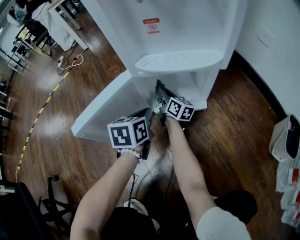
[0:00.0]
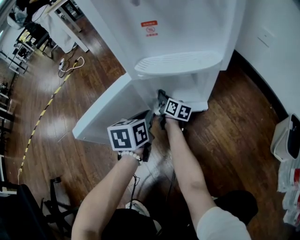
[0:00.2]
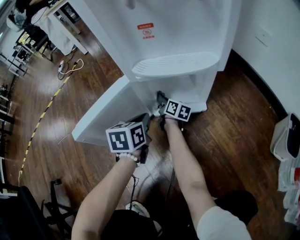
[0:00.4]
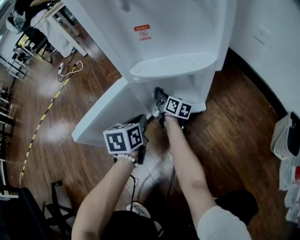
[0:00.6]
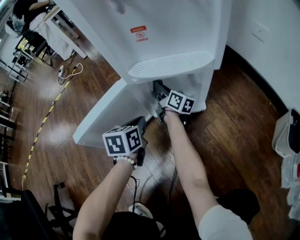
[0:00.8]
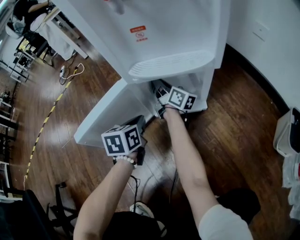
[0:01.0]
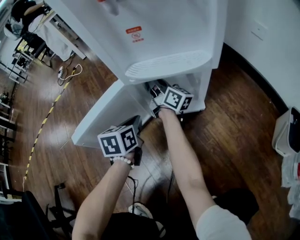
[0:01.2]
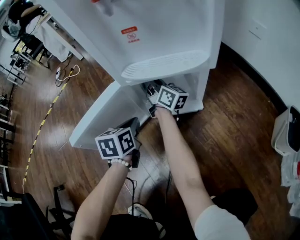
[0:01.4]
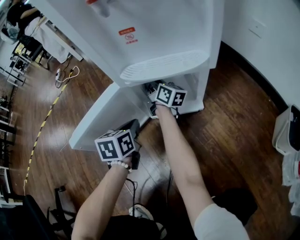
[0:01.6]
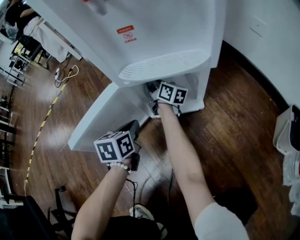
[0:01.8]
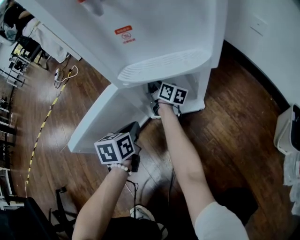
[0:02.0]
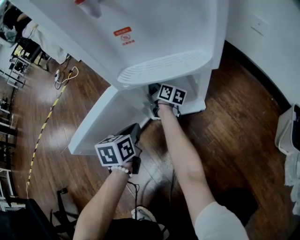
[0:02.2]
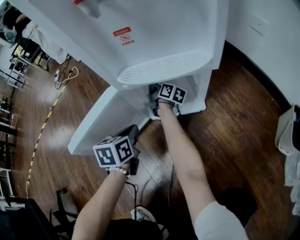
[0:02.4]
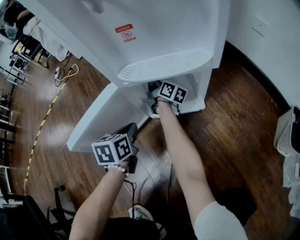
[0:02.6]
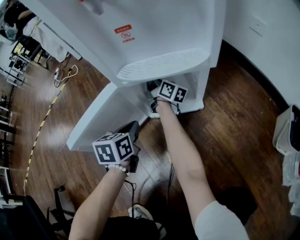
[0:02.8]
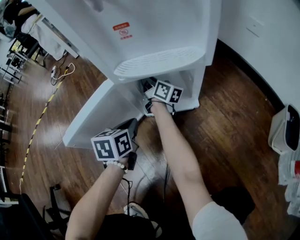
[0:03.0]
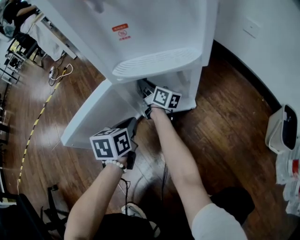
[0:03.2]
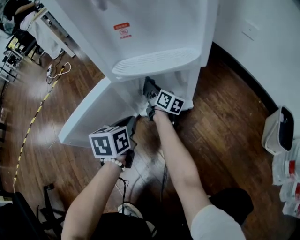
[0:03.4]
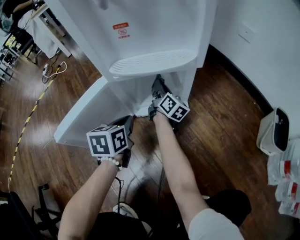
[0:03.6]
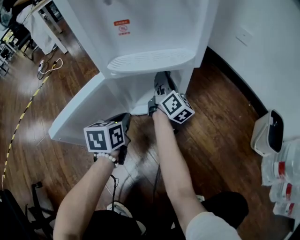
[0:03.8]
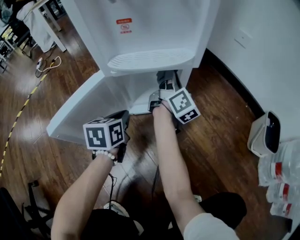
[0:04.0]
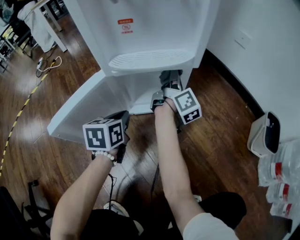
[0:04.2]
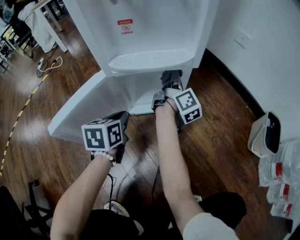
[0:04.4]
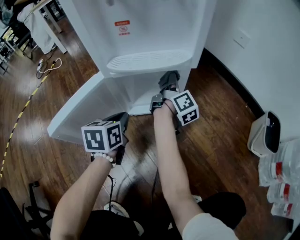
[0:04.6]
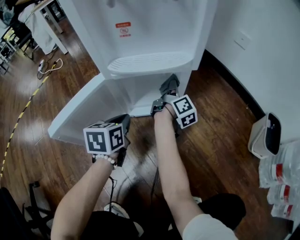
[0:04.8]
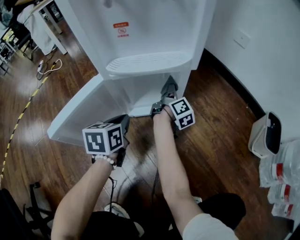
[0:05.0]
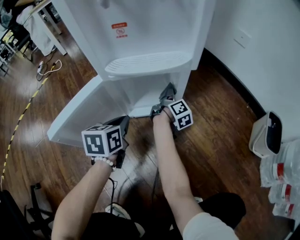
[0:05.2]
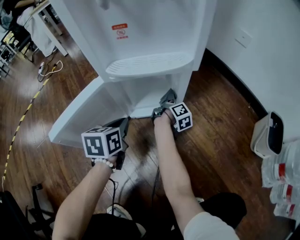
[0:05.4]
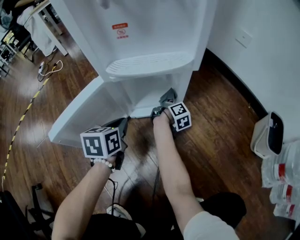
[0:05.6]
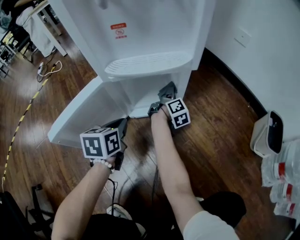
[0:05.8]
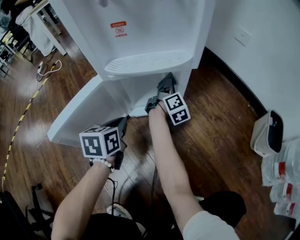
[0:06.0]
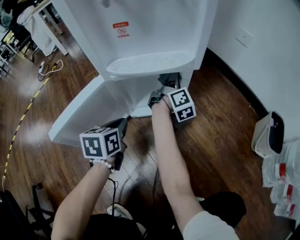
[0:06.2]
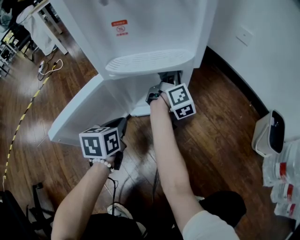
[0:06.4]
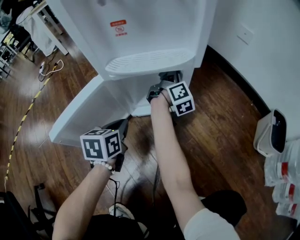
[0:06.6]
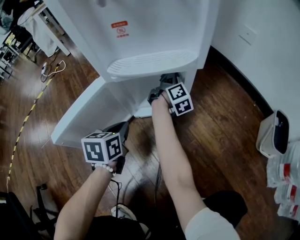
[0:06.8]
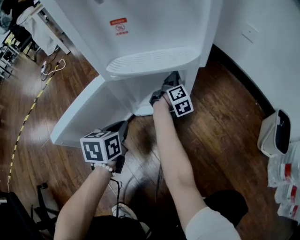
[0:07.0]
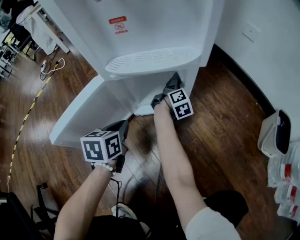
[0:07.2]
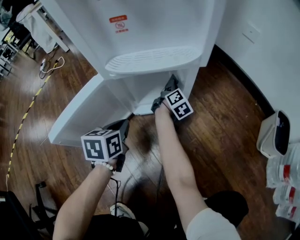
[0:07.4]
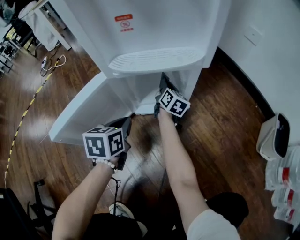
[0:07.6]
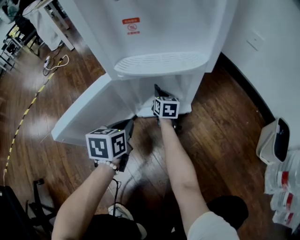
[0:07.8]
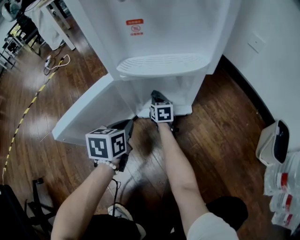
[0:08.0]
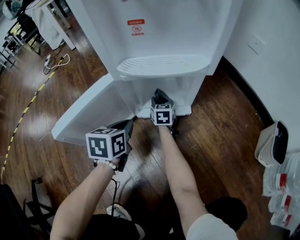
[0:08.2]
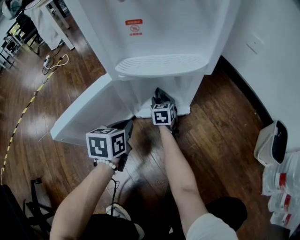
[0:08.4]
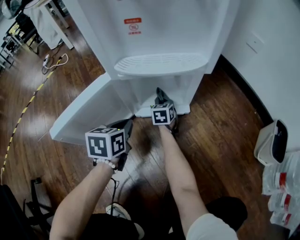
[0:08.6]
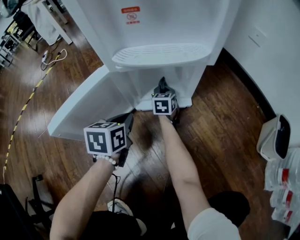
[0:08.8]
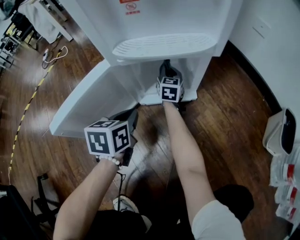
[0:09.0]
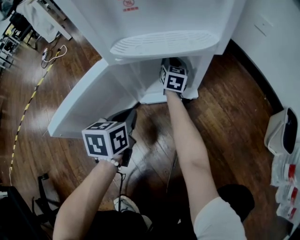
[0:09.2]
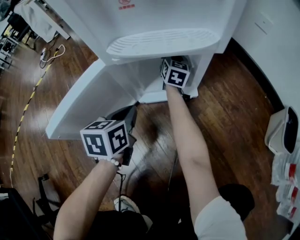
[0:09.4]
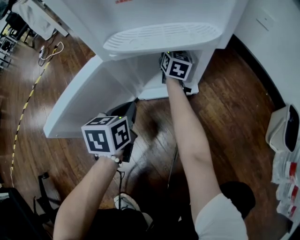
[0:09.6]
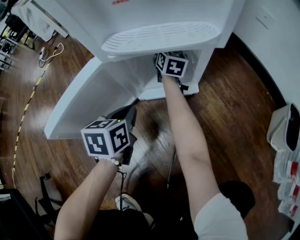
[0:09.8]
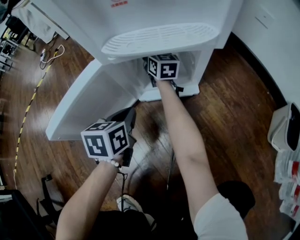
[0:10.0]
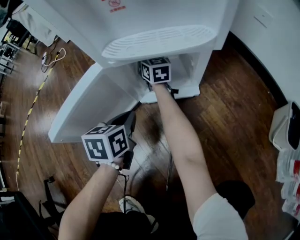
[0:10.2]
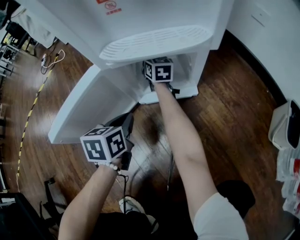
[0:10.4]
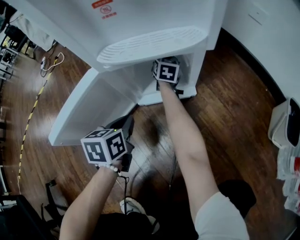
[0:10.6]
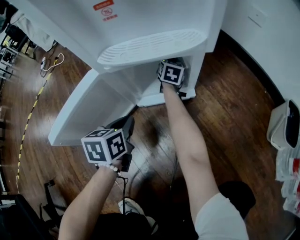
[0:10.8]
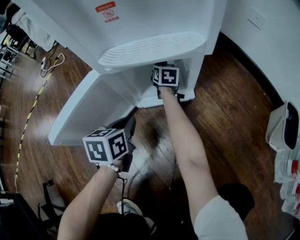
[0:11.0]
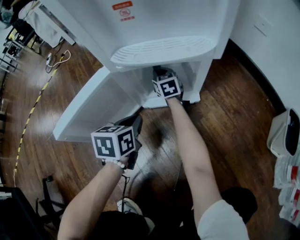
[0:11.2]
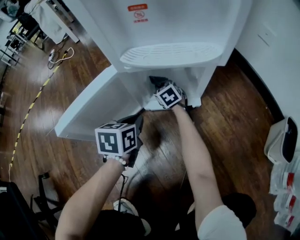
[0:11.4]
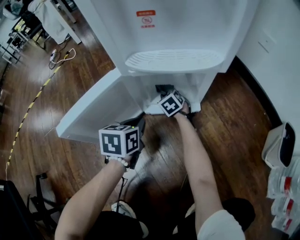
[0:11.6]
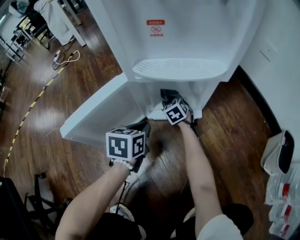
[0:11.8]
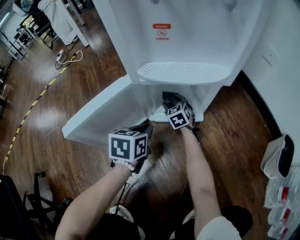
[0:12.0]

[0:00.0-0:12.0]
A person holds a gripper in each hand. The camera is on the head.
0:00.0 to 0:01.6: The right gripper moves up and down over roughly 20 cm, changing direction 2 times.
0:01.6 to 0:03.0: The right gripper reaches roughly 10 cm downward, then returns.
0:03.0 to 0:04.4: The right gripper heads to the right, covering roughly 20 cm, and rotates some 40 degrees.
0:04.4 to 0:06.0: The right gripper heads downward, covering approximately 10 cm.
0:06.0 to 0:07.6: The right gripper goes approximately 5 cm to the left, travels upward and back again, about 10 cm each way, and changes its angle by roughly 40 degrees.
0:07.6 to 0:09.0: The right gripper goes downward and returns, about 10 cm each way, rotates approximately 30 degrees, and opens, then closes once more.
0:09.0 to 0:10.4: The right gripper moves to the left, about 5 cm.
0:10.4 to 0:12.0: The right gripper is displaced downward and backward by some 15 cm, travels to the right and back again, some 10 cm each way, changes its angle by approximately 40 degrees, and opens its fingers.

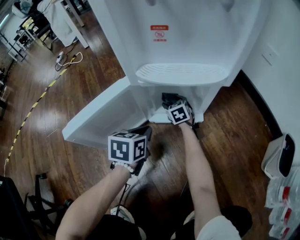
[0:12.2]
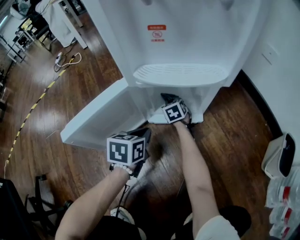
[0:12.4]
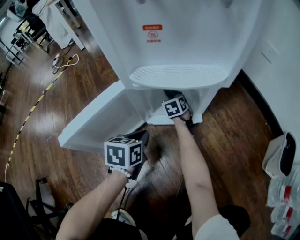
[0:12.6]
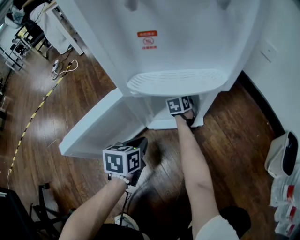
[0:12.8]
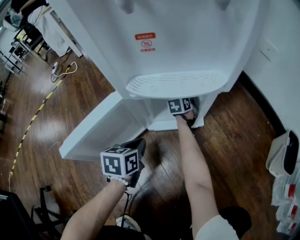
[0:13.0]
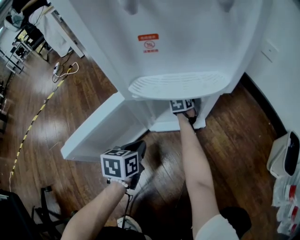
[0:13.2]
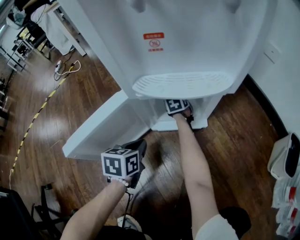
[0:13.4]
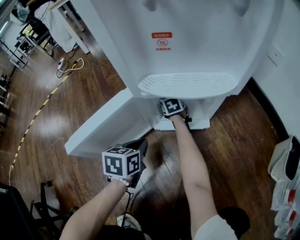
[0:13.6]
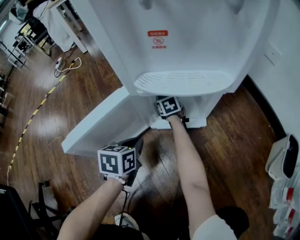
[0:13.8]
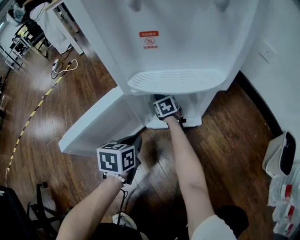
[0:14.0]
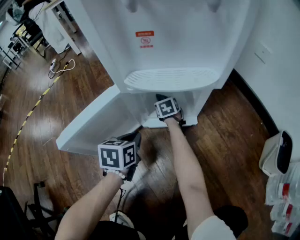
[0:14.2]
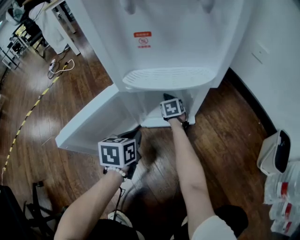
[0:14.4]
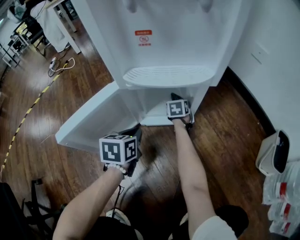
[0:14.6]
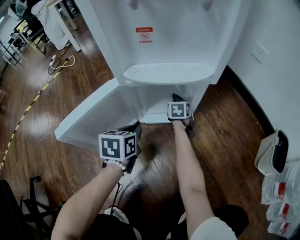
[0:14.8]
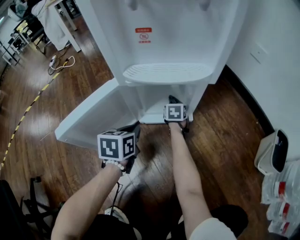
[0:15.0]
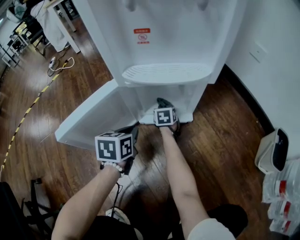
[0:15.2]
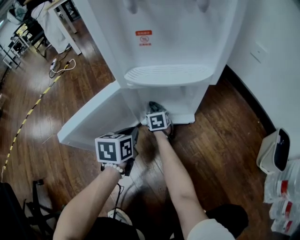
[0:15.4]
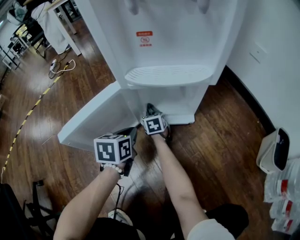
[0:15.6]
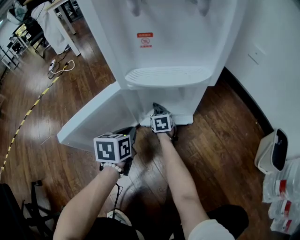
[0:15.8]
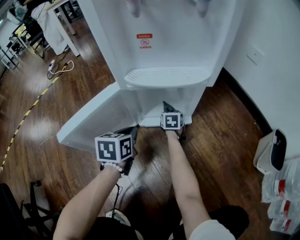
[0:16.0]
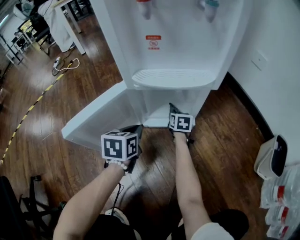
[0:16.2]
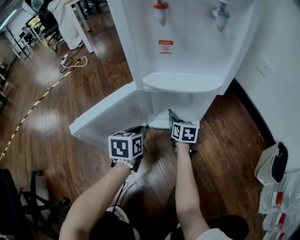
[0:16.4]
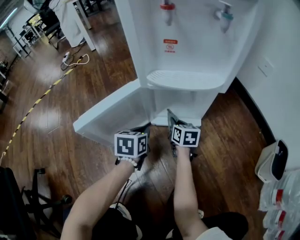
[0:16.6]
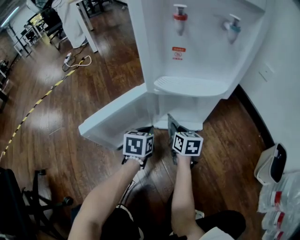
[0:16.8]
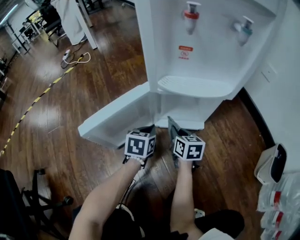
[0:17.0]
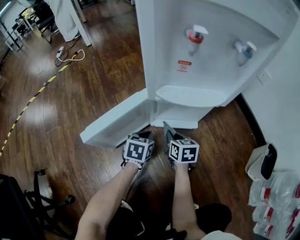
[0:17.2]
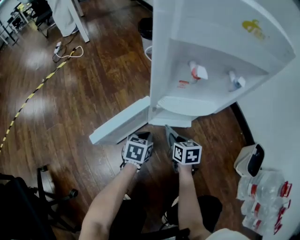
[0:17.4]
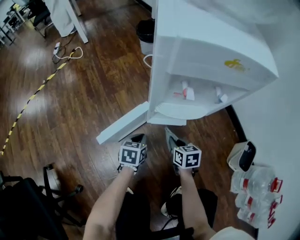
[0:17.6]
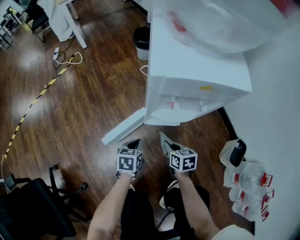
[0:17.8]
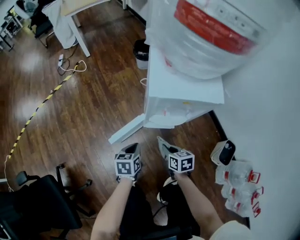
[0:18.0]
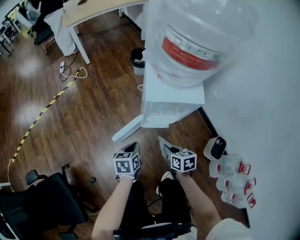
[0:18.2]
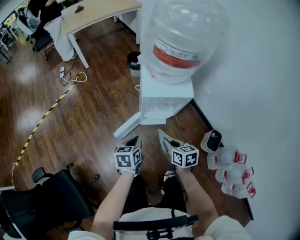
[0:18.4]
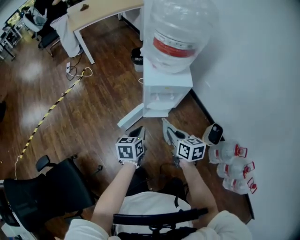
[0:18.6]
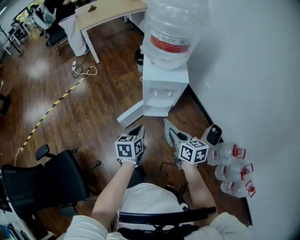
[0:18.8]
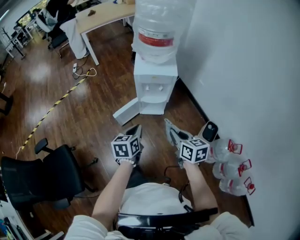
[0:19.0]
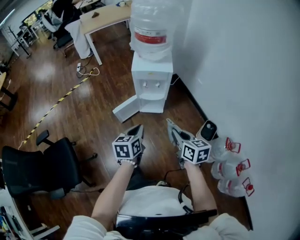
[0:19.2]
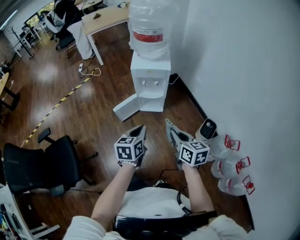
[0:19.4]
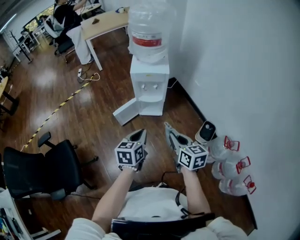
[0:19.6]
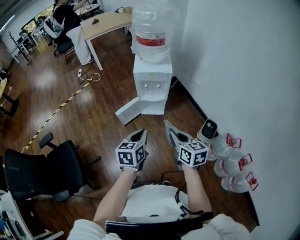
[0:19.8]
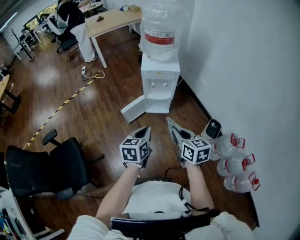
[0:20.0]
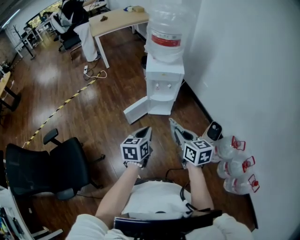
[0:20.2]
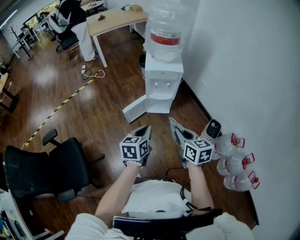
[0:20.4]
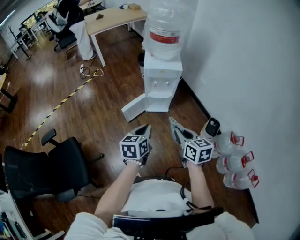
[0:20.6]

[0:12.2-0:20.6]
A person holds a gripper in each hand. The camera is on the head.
0:12.2 to 0:13.6: The right gripper closes its fingers.
0:13.6 to 0:15.0: The right gripper is displaced to the right and backward by roughly 10 cm.
0:15.0 to 0:16.4: The right gripper swings left and right, roughly 15 cm each way, with 2 reversals.
0:16.4 to 0:17.8: The left gripper shifts roughly 20 cm upward. The right gripper is displaced upward and backward by roughly 35 cm.
0:17.8 to 0:19.2: The two grippers go some 60 cm upward and backward. The right gripper changes its angle by about 20 degrees.
0:19.2 to 0:20.6: The grippers both shift to the left and backward by roughly 10 cm.

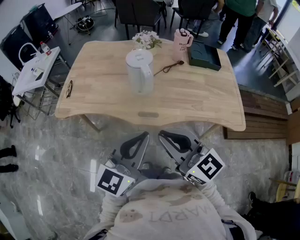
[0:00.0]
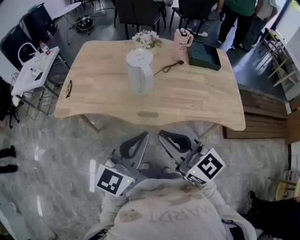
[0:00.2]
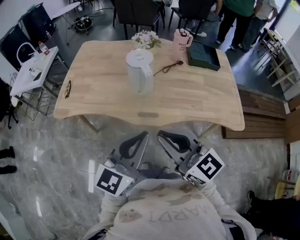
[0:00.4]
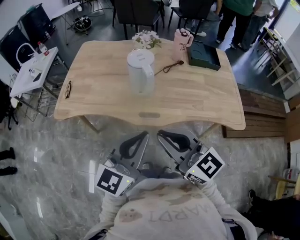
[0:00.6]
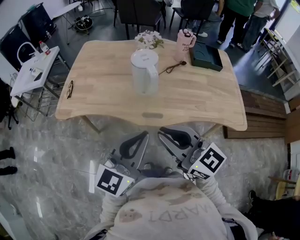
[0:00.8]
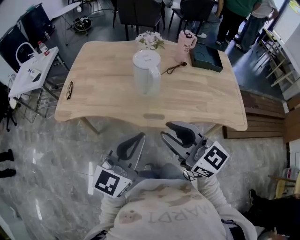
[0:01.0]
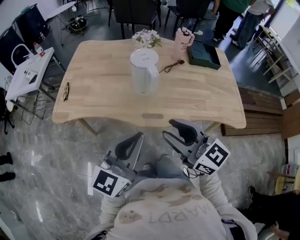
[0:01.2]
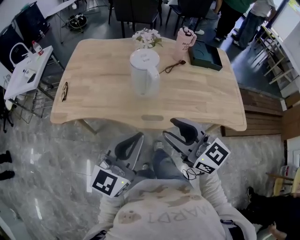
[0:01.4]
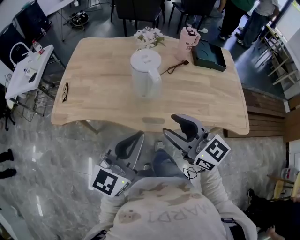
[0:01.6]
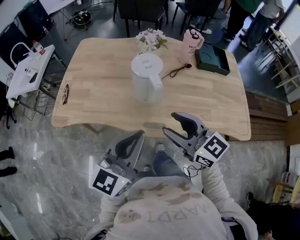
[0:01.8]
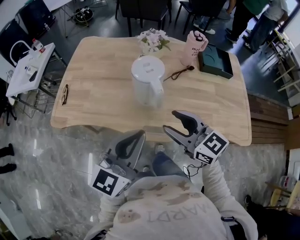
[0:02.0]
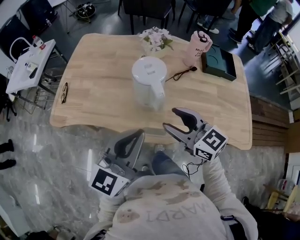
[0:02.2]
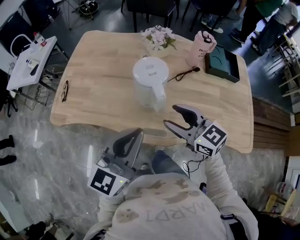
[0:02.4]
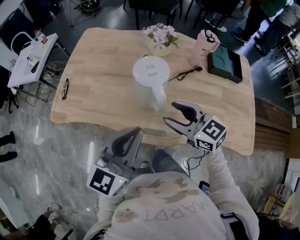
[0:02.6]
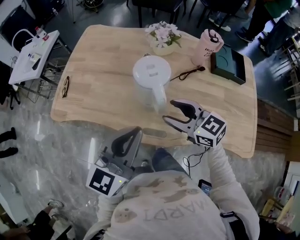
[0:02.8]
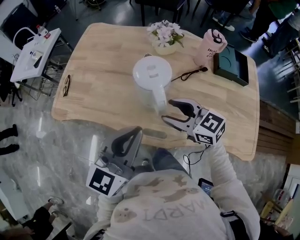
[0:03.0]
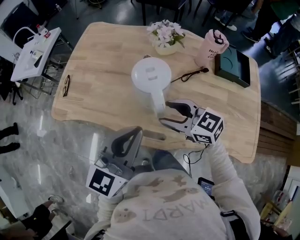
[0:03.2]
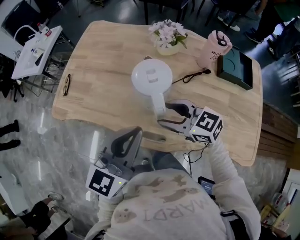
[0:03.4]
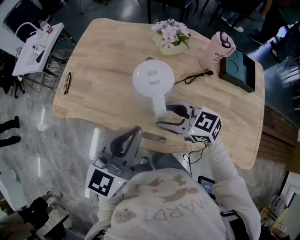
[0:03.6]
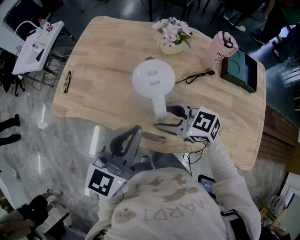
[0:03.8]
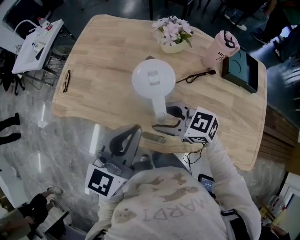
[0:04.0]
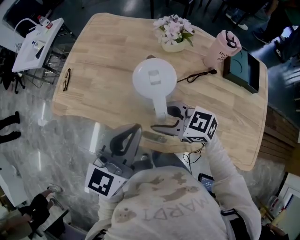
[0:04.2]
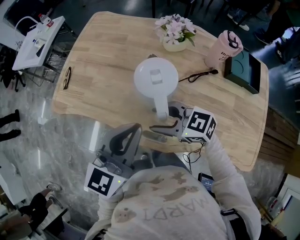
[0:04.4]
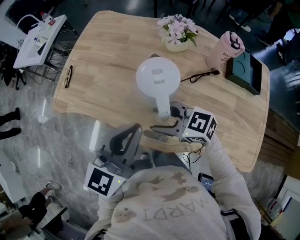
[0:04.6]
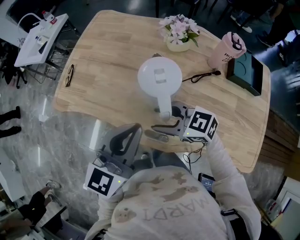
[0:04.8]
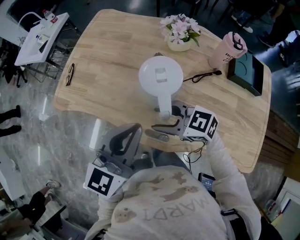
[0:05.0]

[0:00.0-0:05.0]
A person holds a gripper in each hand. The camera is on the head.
0:00.0 to 0:01.6: The left gripper shifts roughly 10 cm forward and to the left, while the right gripper heads forward, covering roughly 10 cm, and opens its fingers.
0:01.6 to 0:03.4: The right gripper moves forward and downward, about 20 cm, and changes its angle by about 30 degrees. Meanwhile the left gripper goes some 15 cm forward.
0:03.4 to 0:05.0: The right gripper changes place by roughly 5 cm.
